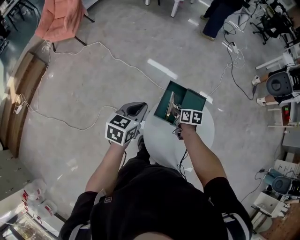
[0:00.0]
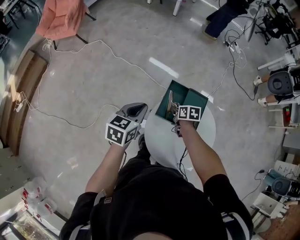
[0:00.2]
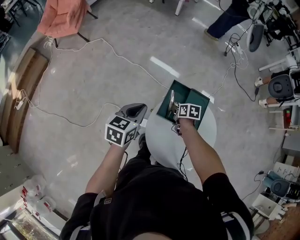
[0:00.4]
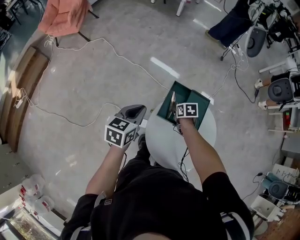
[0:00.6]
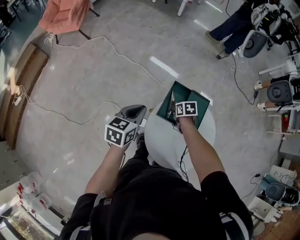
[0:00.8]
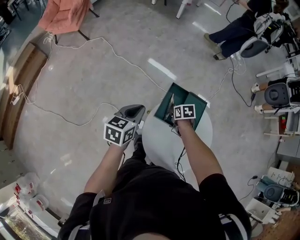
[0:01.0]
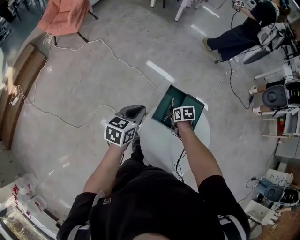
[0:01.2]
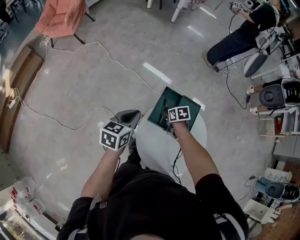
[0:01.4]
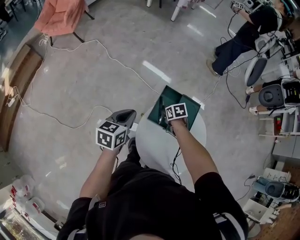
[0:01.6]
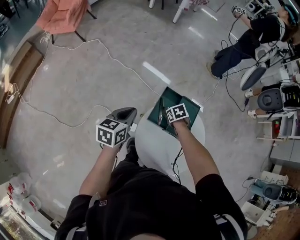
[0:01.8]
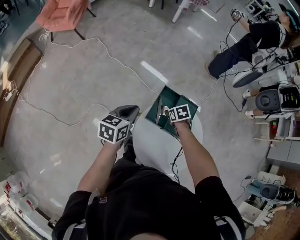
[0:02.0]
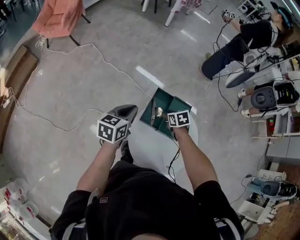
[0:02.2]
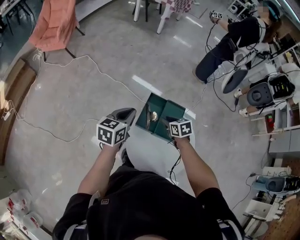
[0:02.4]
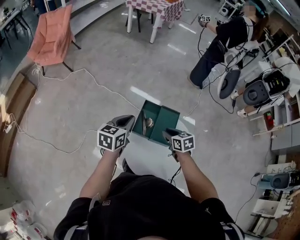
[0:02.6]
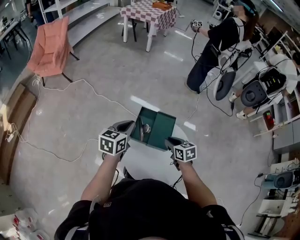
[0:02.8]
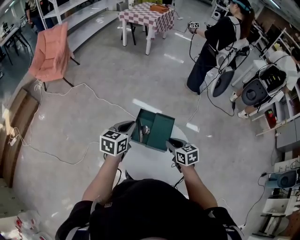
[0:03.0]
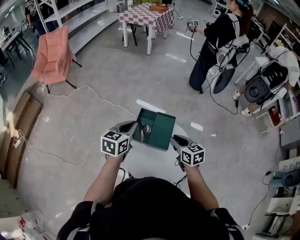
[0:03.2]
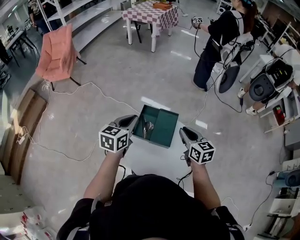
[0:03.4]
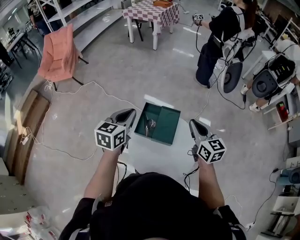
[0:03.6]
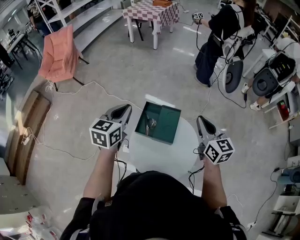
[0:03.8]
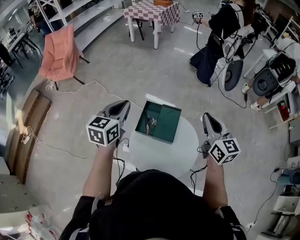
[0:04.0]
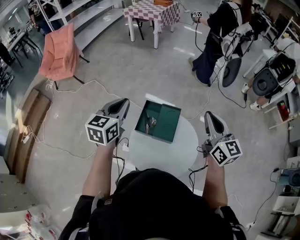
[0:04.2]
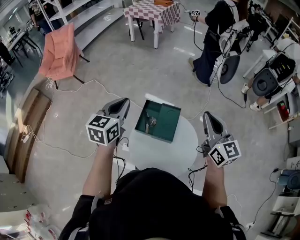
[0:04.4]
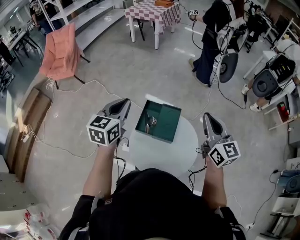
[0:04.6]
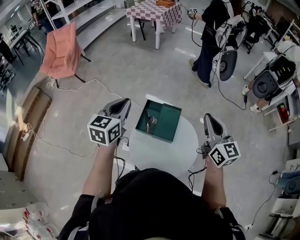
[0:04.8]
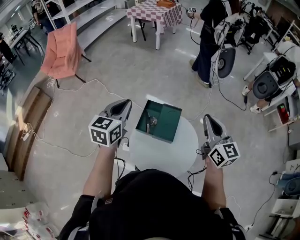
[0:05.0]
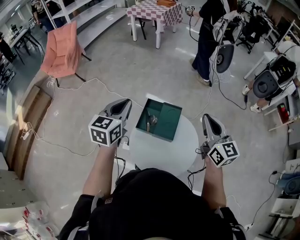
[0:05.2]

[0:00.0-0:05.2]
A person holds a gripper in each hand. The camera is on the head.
0:00.0 to 0:01.8: The right gripper swivels about 40 degrees, and opens up.
0:01.8 to 0:03.4: The left gripper ends up about 15 cm from where it was, while the right gripper goes about 25 cm upward, and tilts its fingers about 50 degrees upward.
0:03.4 to 0:05.2: The left gripper heads upward, covering some 10 cm, while the right gripper travels upward by roughly 15 cm, and turns by approximately 20 degrees.

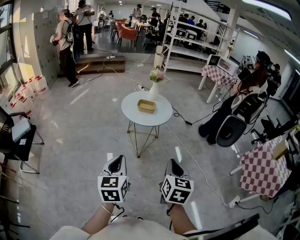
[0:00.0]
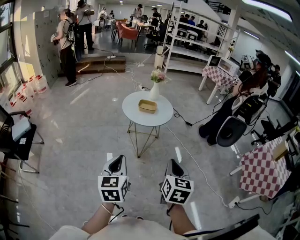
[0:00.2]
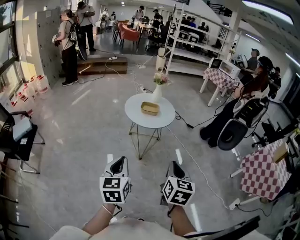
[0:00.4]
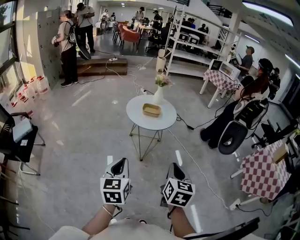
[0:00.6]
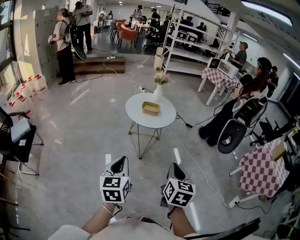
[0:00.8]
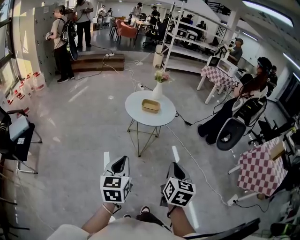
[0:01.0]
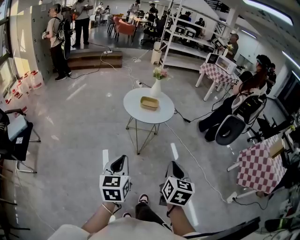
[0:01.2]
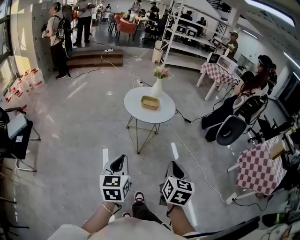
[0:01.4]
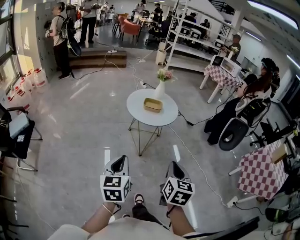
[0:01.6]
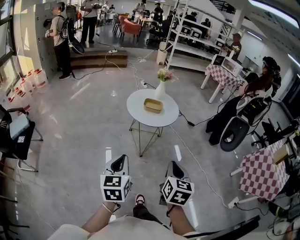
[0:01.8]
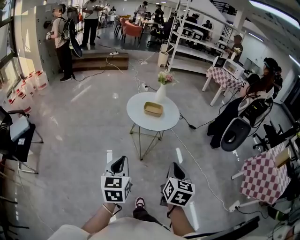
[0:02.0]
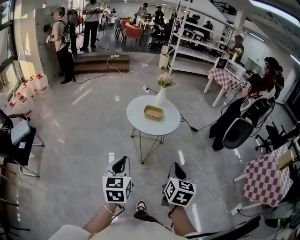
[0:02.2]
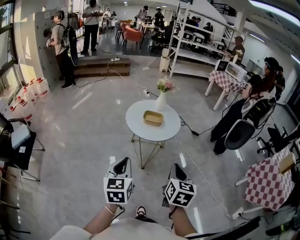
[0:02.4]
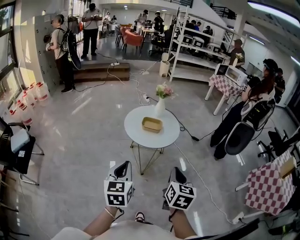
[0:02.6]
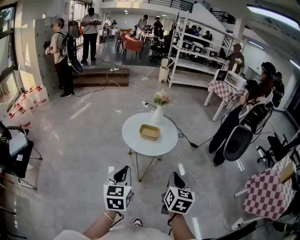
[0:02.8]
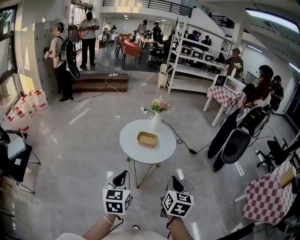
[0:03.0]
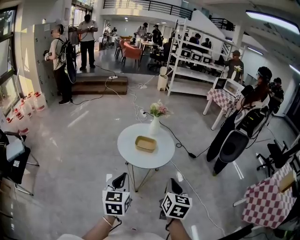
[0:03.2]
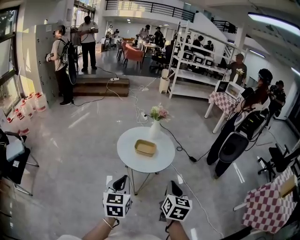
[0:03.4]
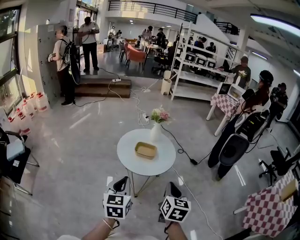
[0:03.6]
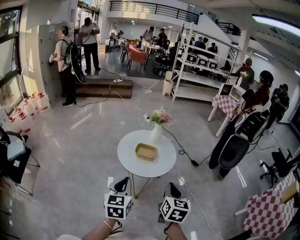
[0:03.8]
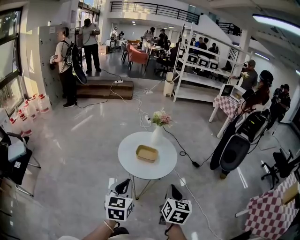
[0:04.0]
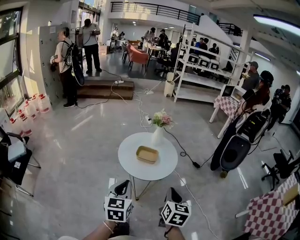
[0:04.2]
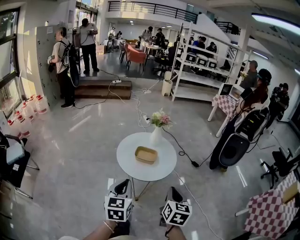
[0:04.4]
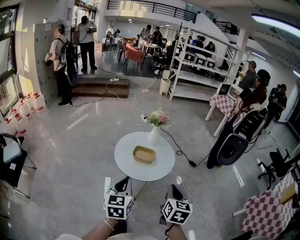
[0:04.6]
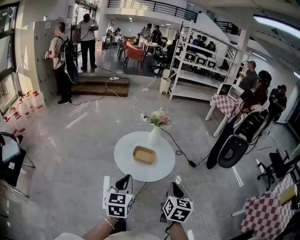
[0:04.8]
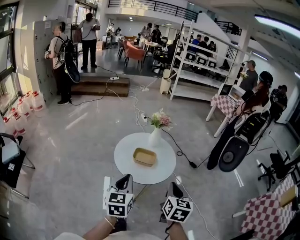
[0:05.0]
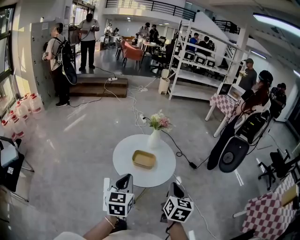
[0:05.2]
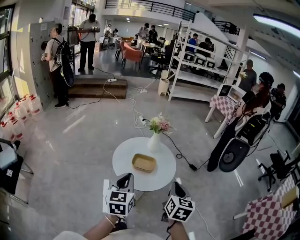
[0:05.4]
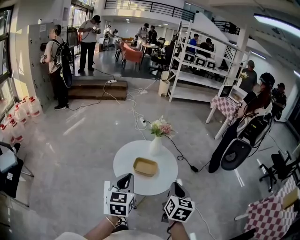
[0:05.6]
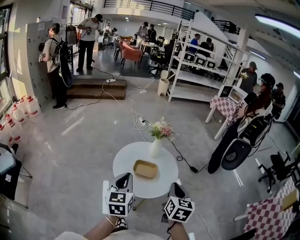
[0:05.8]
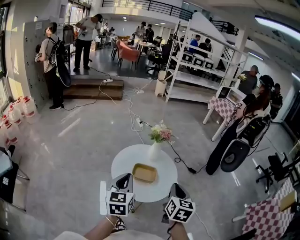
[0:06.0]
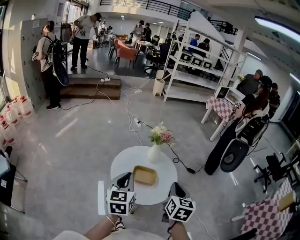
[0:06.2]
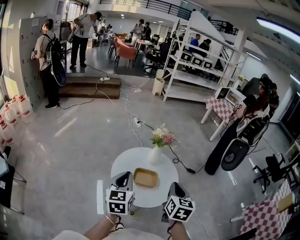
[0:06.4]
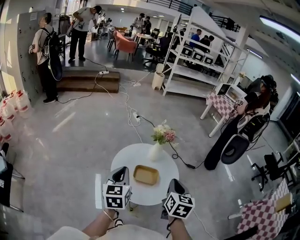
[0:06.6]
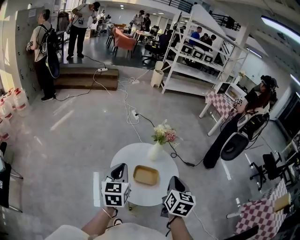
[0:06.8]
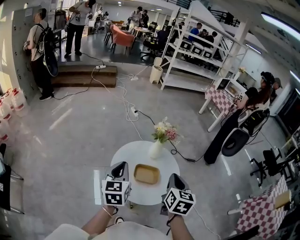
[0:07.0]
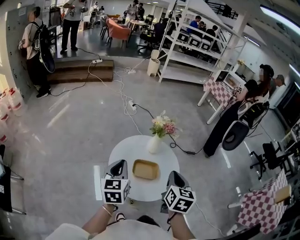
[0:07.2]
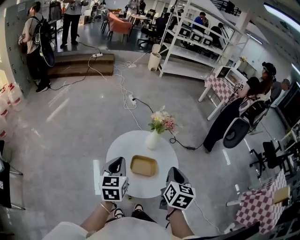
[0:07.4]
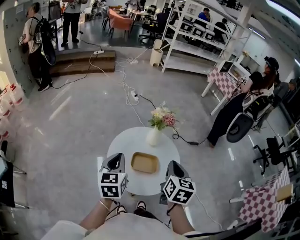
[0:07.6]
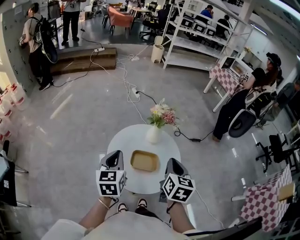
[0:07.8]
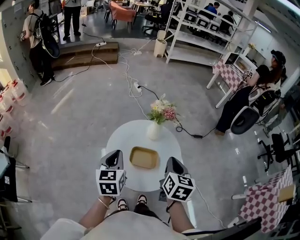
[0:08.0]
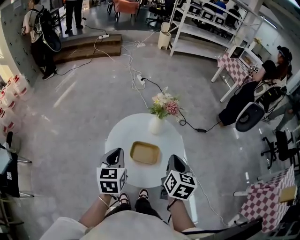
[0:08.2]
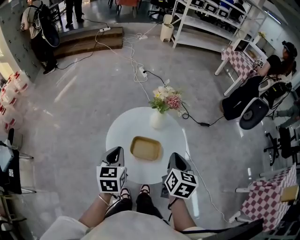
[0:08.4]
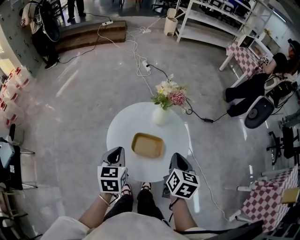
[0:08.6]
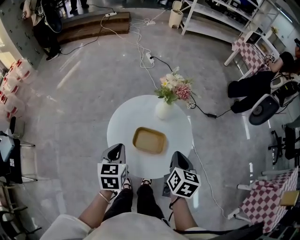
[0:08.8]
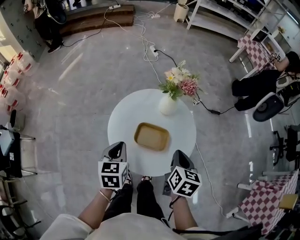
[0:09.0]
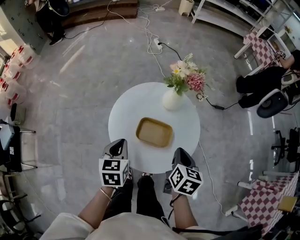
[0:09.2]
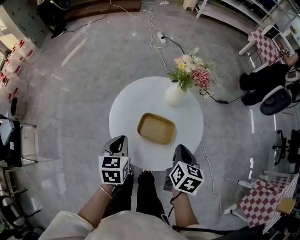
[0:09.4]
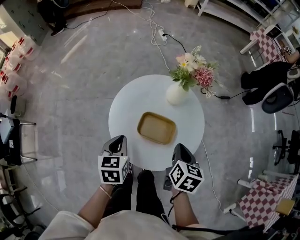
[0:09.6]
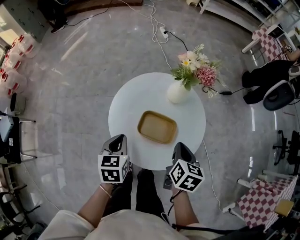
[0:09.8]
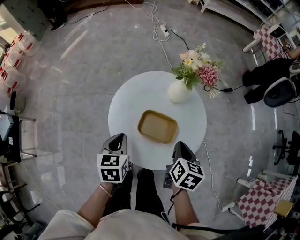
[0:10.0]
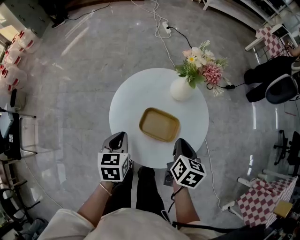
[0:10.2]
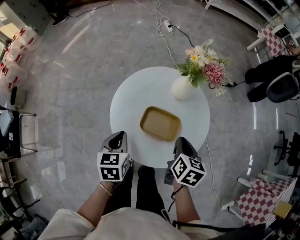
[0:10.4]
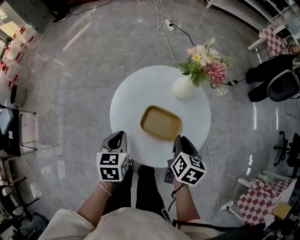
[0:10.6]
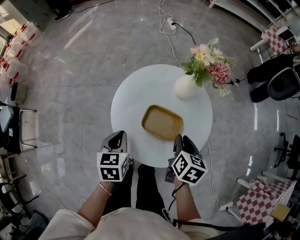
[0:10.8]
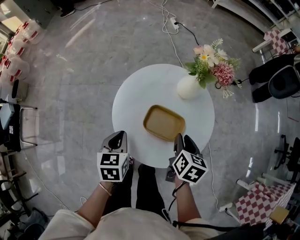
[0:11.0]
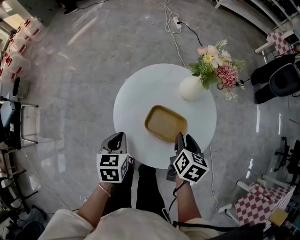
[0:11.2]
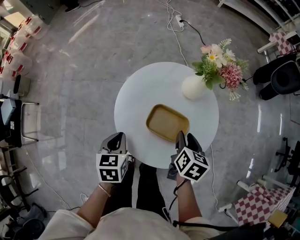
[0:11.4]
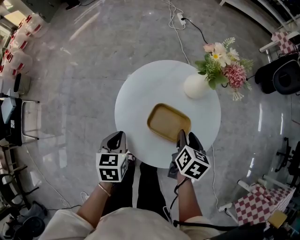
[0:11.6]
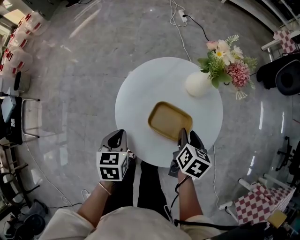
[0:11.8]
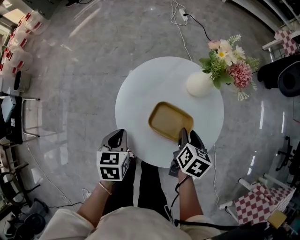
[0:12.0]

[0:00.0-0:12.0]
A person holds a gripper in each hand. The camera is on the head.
0:00.0 to 0:01.6: The left gripper changes place by about 5 cm. The right gripper changes place by roughly 5 cm.
0:01.6 to 0:03.0: Both grippers move forward, approximately 15 cm.
0:03.0 to 0:04.4: The two grippers go about 10 cm forward.
0:04.4 to 0:06.0: Both grippers move forward, approximately 15 cm.
0:06.0 to 0:07.6: The right gripper shifts about 10 cm forward. The left gripper travels forward and to the left by some 10 cm.
0:07.6 to 0:09.0: The grippers both shift downward by roughly 15 cm.
0:09.0 to 0:10.4: Both grippers travel together downward, roughly 5 cm.
0:10.4 to 0:12.0: The right gripper heads downward, covering some 5 cm, and opens.

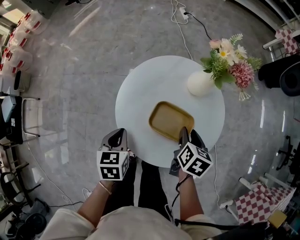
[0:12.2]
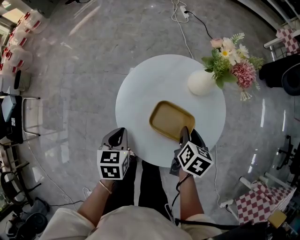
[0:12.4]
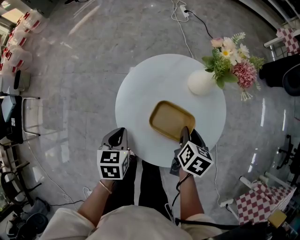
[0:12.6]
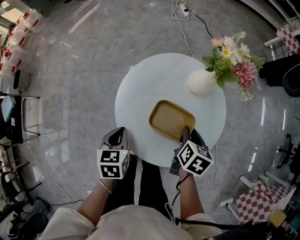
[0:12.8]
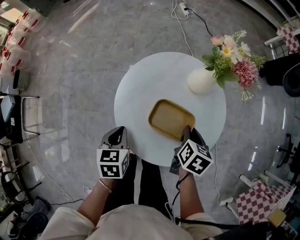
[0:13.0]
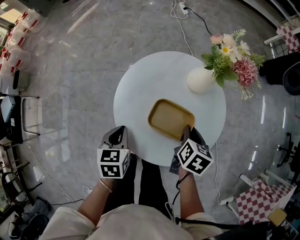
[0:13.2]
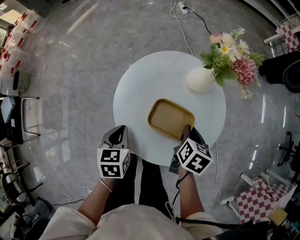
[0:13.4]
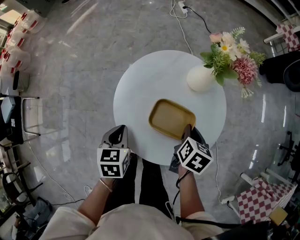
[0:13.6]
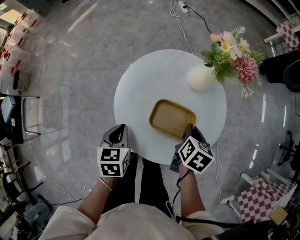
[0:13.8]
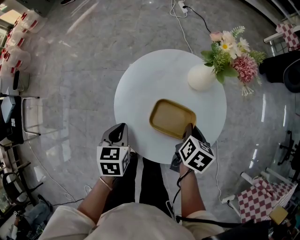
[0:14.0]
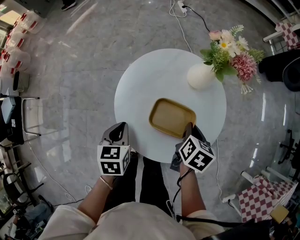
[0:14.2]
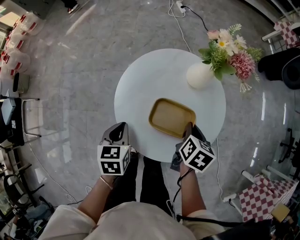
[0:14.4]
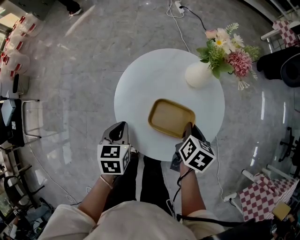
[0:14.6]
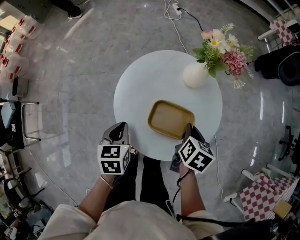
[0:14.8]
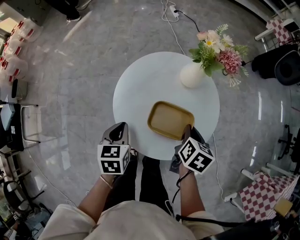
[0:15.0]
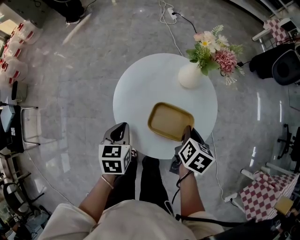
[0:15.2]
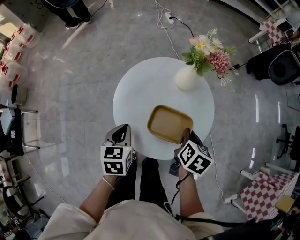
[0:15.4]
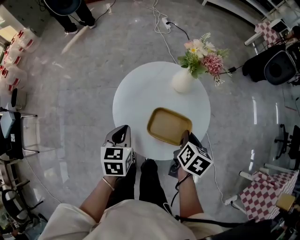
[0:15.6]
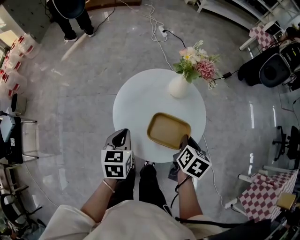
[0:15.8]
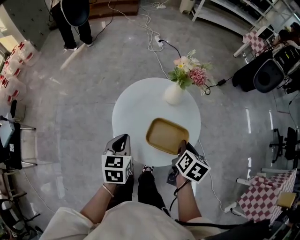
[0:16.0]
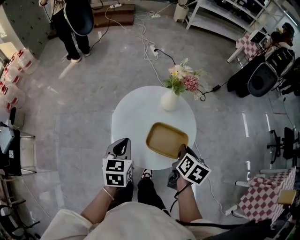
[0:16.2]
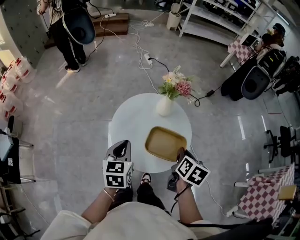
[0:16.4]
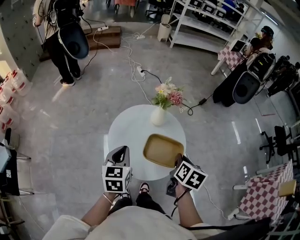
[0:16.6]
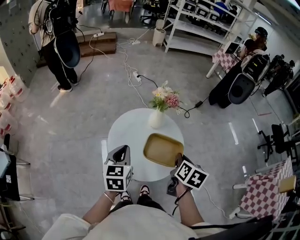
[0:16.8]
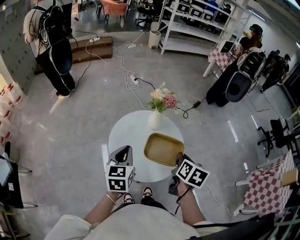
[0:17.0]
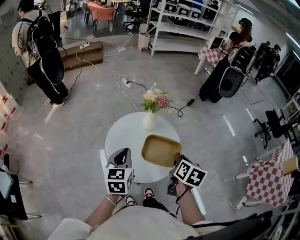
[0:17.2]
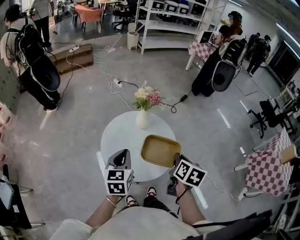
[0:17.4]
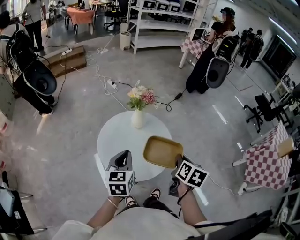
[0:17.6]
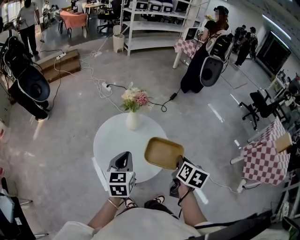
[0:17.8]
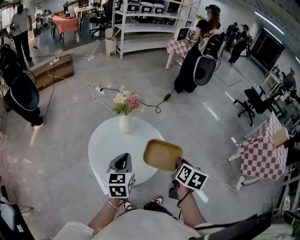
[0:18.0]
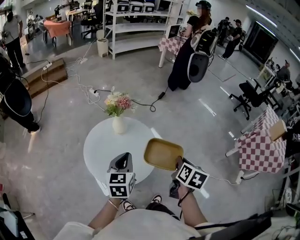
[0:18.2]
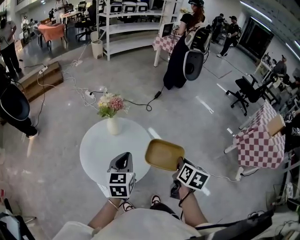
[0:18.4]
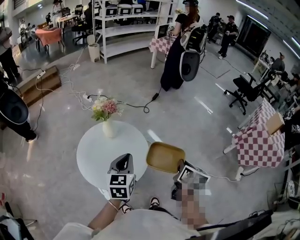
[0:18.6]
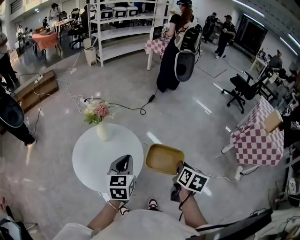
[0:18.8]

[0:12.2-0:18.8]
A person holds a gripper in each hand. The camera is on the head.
0:12.2 to 0:13.8: The right gripper closes.
0:13.8 to 0:15.4: The right gripper changes place by some 5 cm.
0:15.4 to 0:17.2: The two grippers go approximately 15 cm upward. The left gripper swivels some 30 degrees.
0:17.2 to 0:18.8: The grippers both shift to the right by approximately 20 cm. The right gripper turns by approximately 20 degrees. Meanwhile the left gripper turns by approximately 20 degrees.
